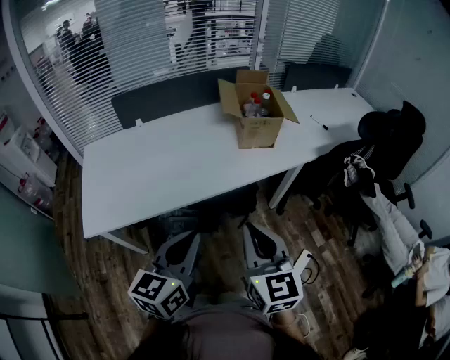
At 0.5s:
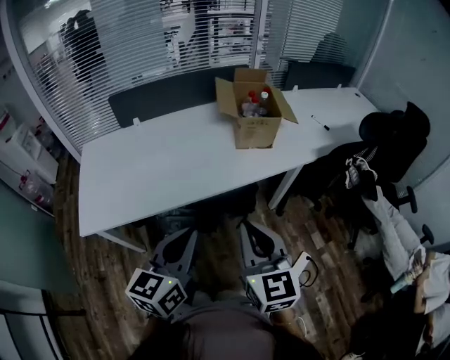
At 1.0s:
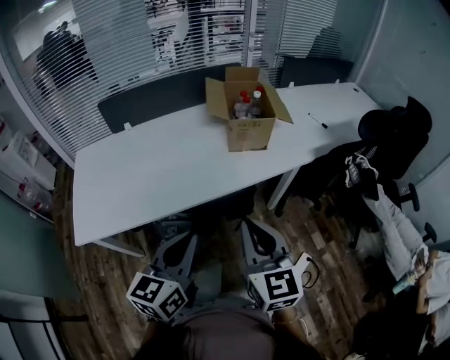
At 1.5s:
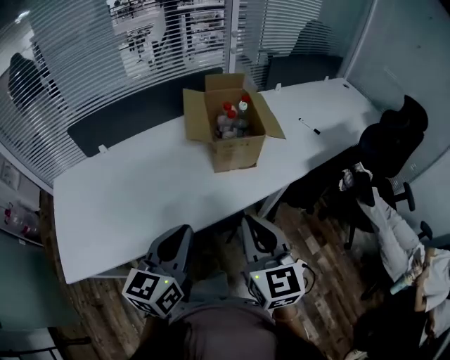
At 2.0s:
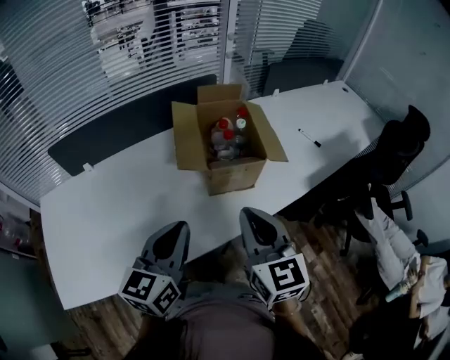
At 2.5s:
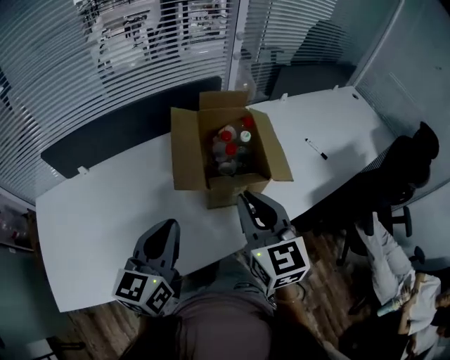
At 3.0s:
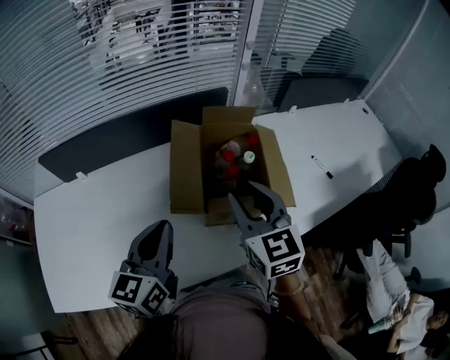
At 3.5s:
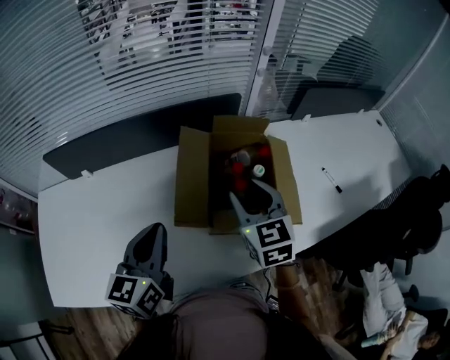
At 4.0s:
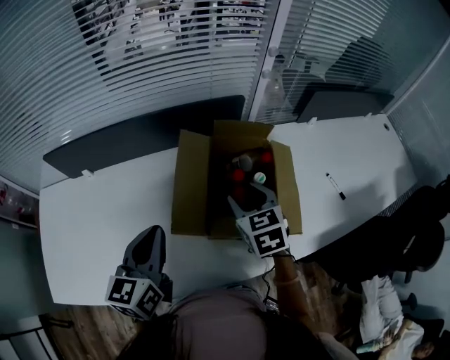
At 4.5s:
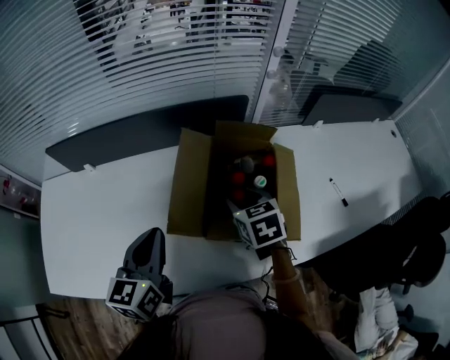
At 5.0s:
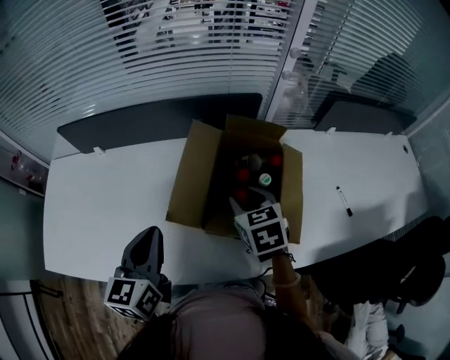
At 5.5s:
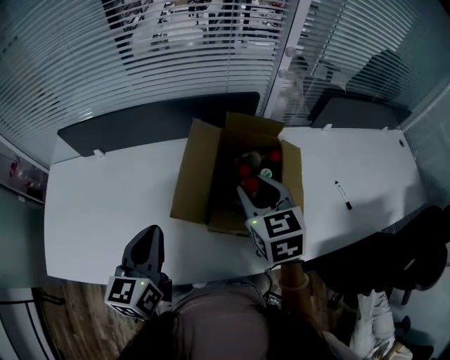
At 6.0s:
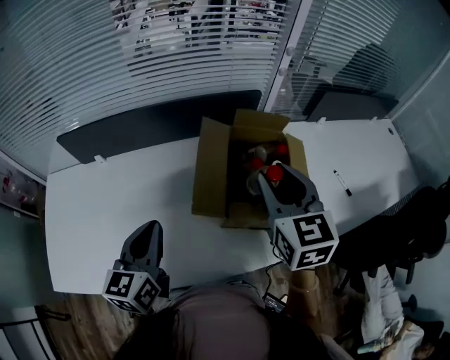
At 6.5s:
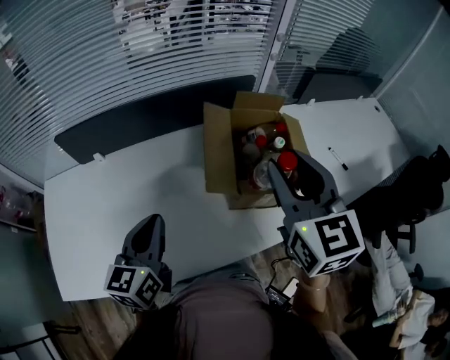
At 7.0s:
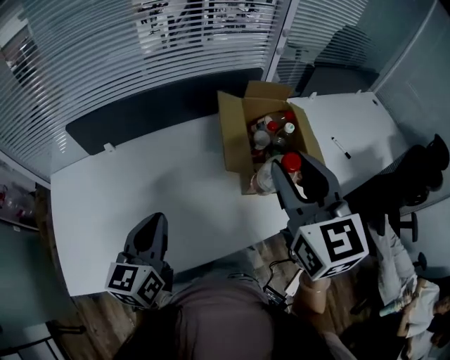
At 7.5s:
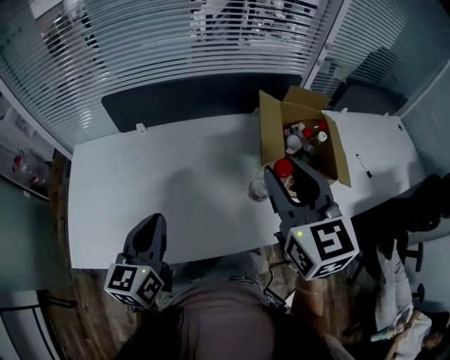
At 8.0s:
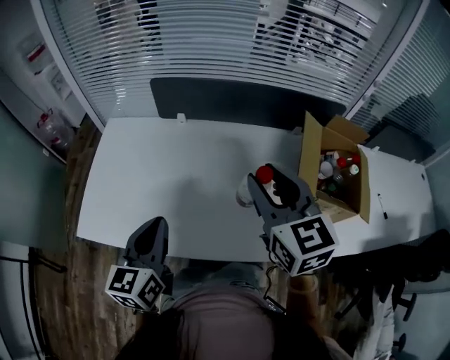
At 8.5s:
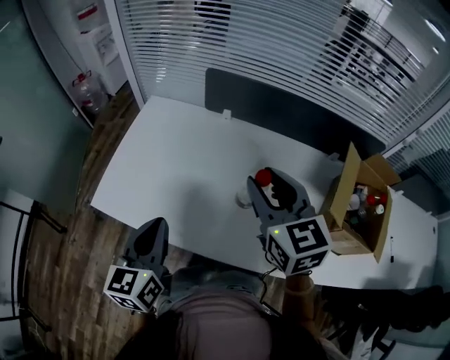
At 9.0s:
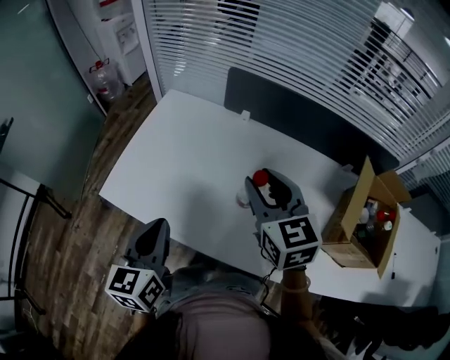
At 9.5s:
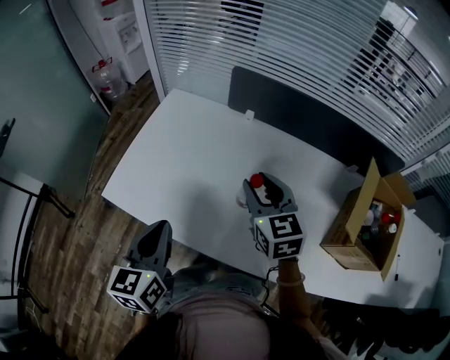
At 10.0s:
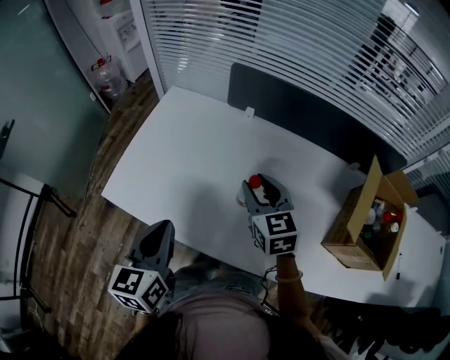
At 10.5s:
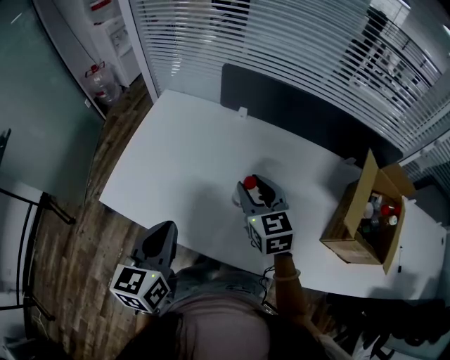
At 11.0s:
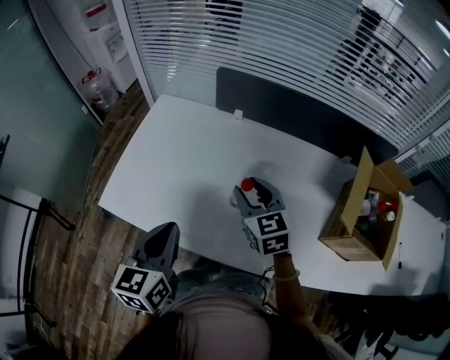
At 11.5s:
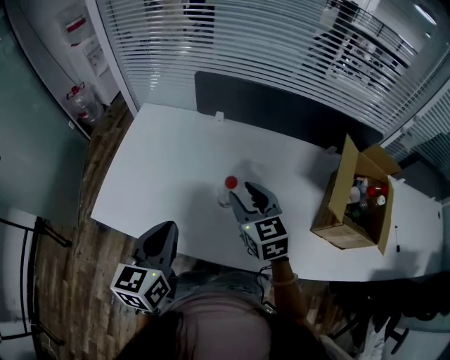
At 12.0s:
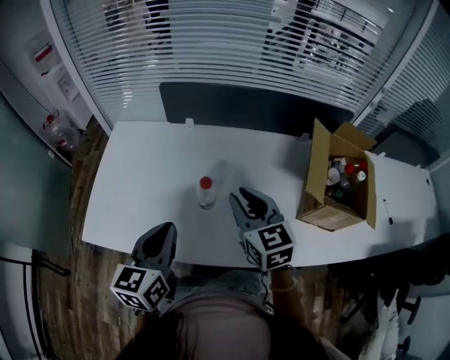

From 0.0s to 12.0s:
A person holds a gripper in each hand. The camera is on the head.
From 0.0s to 2.0s: The grippers both shift forward by approximately 35 cm.
From 2.0s to 4.0s: The left gripper moves forward, roughly 20 cm, and changes its angle by some 20 degrees; the right gripper shifts roughly 30 cm forward, turns by approximately 30 degrees, and opens.
From 4.0s to 6.0s: The right gripper goes about 15 cm upward. Meanwhile the left gripper goes roughly 5 cm to the left.
From 6.0s to 8.0s: The right gripper changes place by some 30 cm, and rotates some 20 degrees. The left gripper changes place by some 30 cm.
From 8.0s to 10.0s: The left gripper is displaced to the left by about 10 cm. The right gripper shifts some 25 cm downward, to the left and forward.
From 10.0s to 12.0s: The right gripper moves to the right and backward, some 10 cm. Meanwhile the left gripper travels to the right by roughly 10 cm, and turns by some 20 degrees.

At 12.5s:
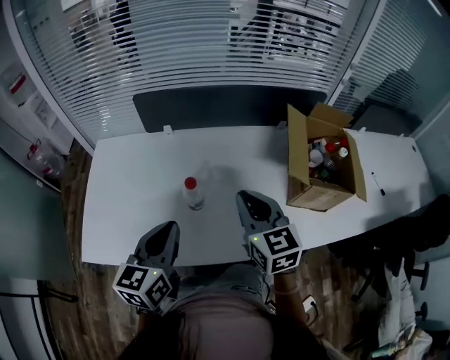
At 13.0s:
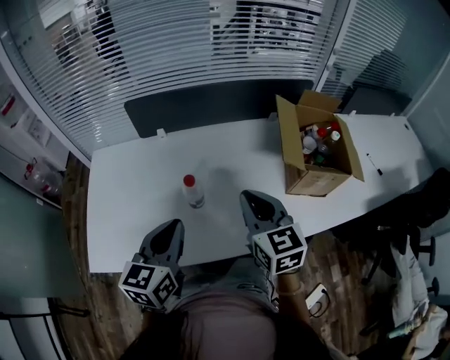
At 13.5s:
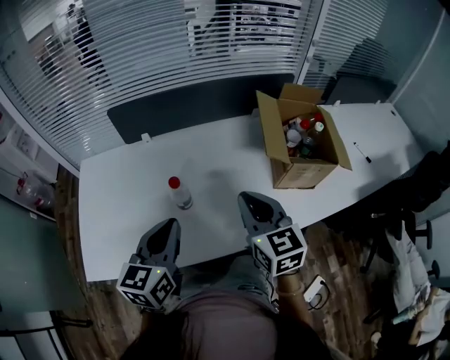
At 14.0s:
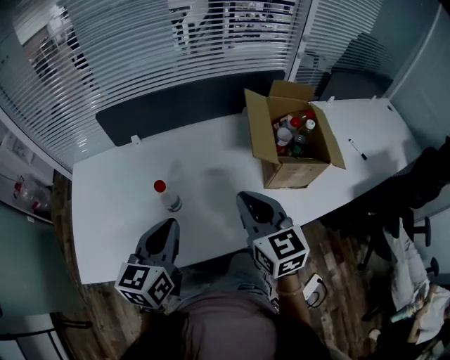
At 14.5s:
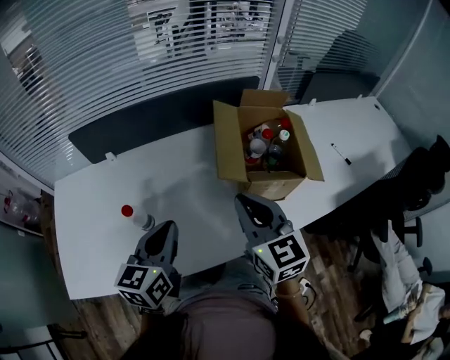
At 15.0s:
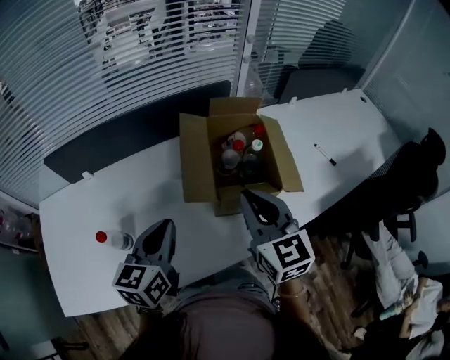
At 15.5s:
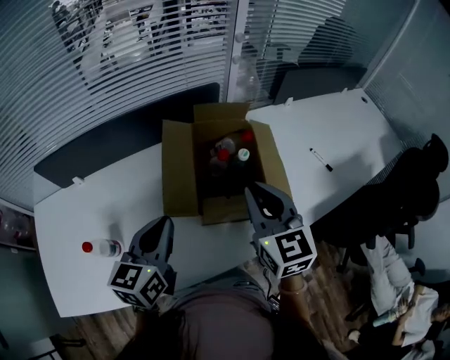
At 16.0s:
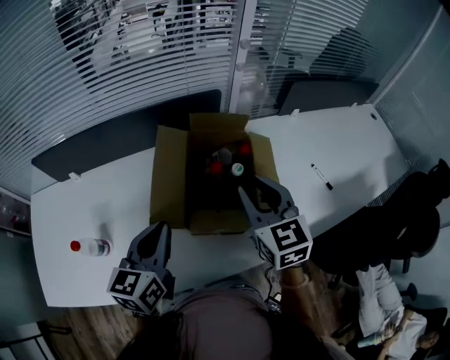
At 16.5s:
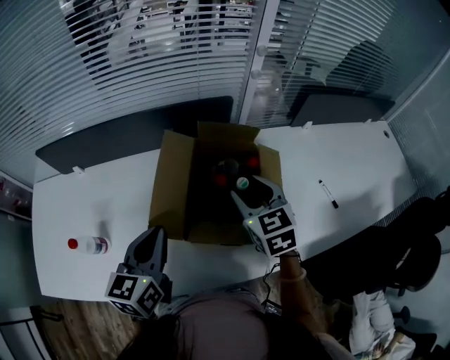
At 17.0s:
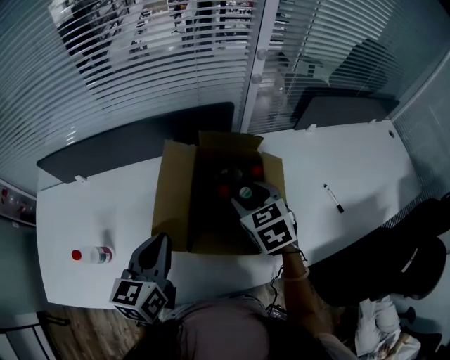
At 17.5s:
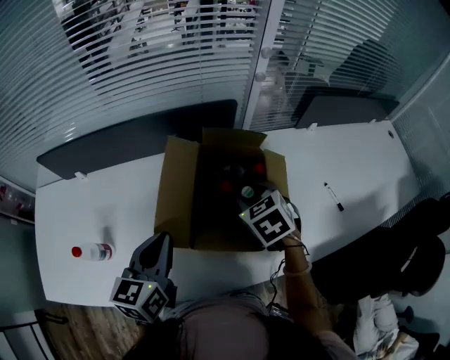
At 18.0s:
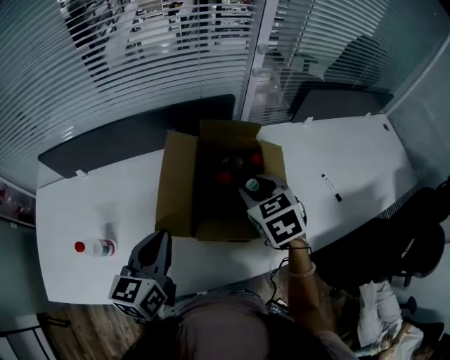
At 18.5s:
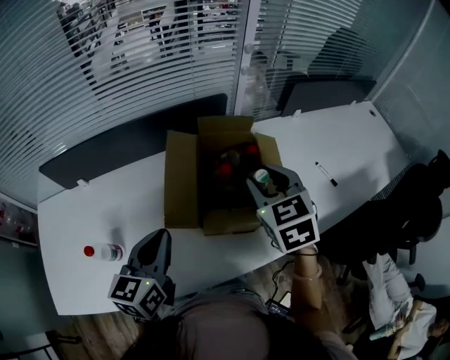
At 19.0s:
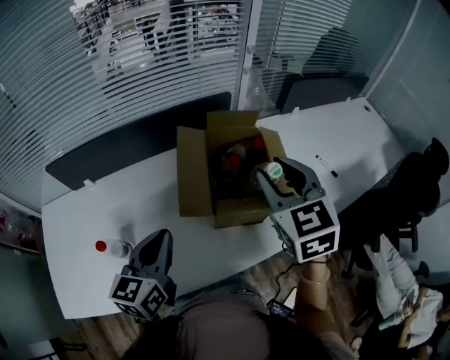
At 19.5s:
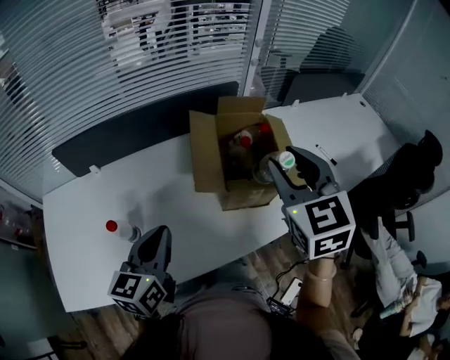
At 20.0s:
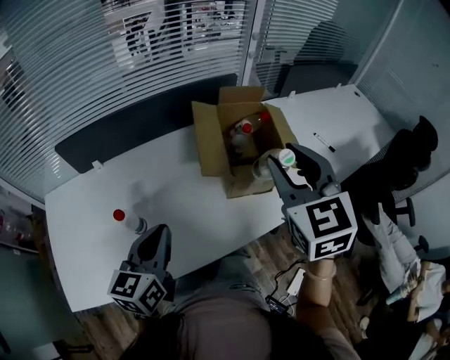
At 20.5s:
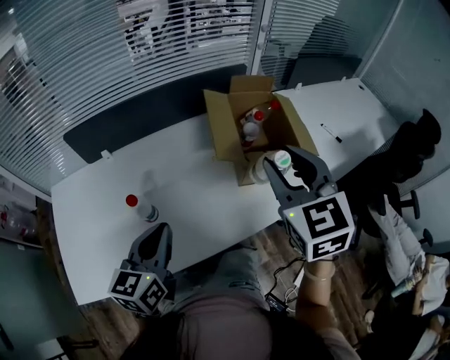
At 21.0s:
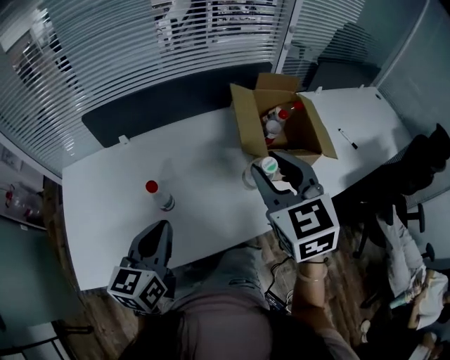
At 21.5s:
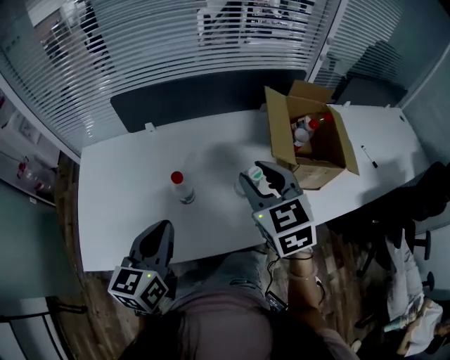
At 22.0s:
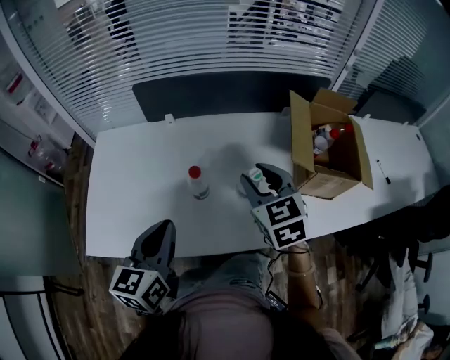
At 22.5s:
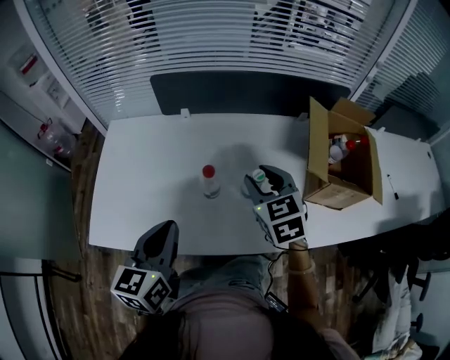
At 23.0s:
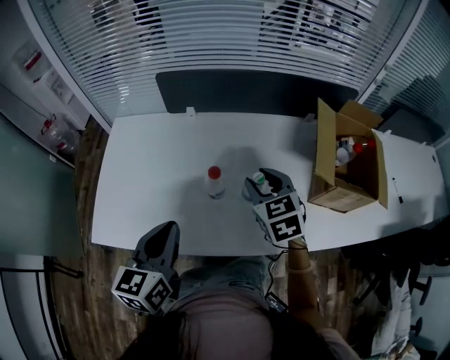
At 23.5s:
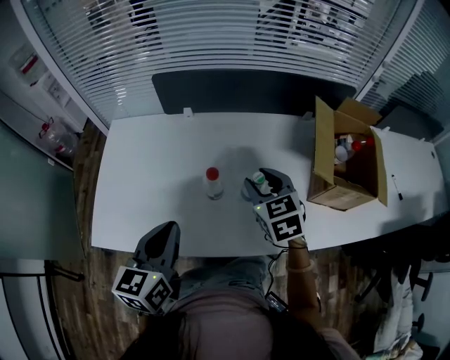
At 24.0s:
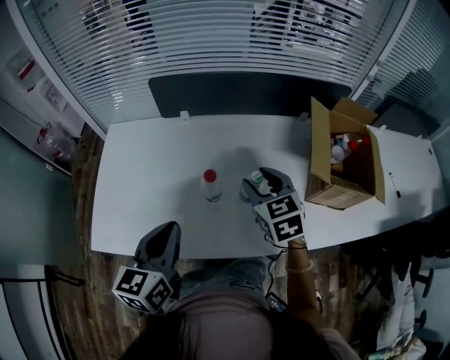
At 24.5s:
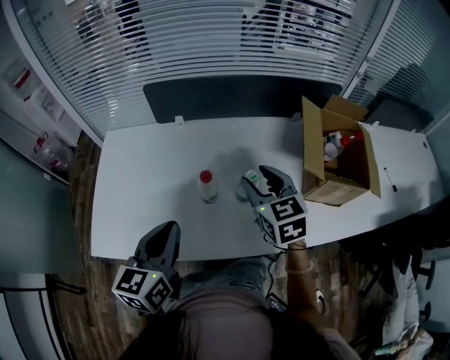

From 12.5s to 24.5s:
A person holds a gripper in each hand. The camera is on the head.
From 12.5s to 14.5s: Both grippers travel together to the right, about 15 cm.
From 14.5s to 16.5s: The right gripper heads forward and to the right, covering about 30 cm, and opens. Meanwhile the left gripper is displaced to the right and forward by some 20 cm.
From 16.5s to 18.5s: The right gripper goes approximately 5 cm upward.
From 18.5s to 20.5s: The two grippers go some 25 cm backward and to the left.
From 20.5s to 22.5s: The right gripper changes place by roughly 30 cm, and changes its angle by roughly 30 degrees. The left gripper changes place by roughly 15 cm, and swivels roughly 20 degrees.
From 22.5s to 24.5s: There are only small adjustments of the grippers.

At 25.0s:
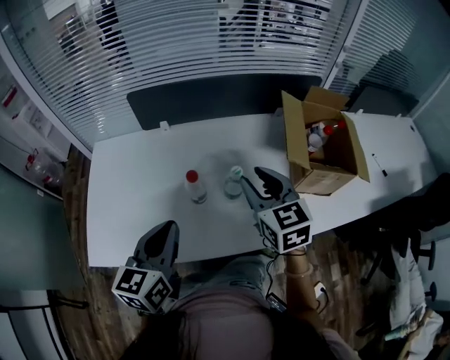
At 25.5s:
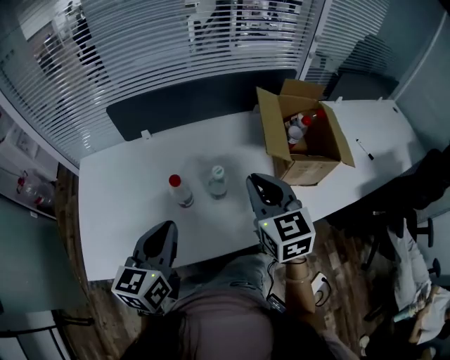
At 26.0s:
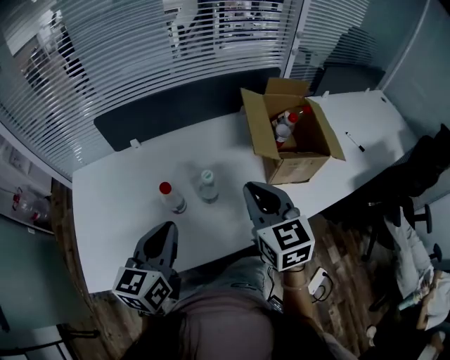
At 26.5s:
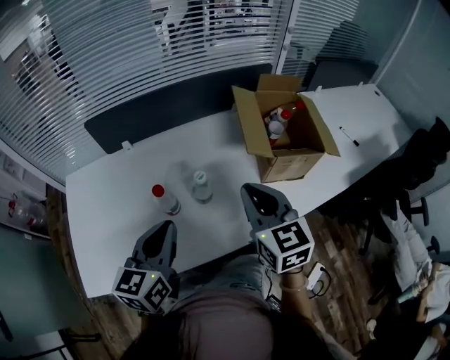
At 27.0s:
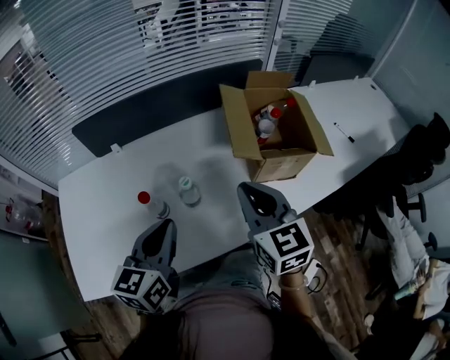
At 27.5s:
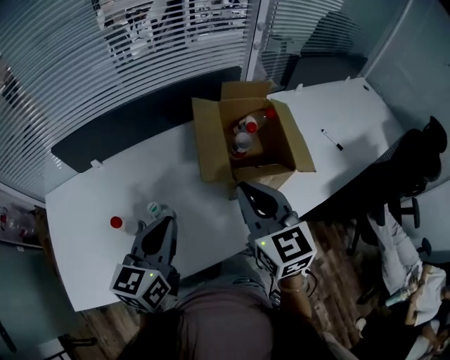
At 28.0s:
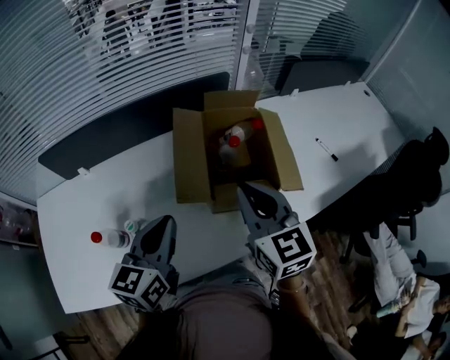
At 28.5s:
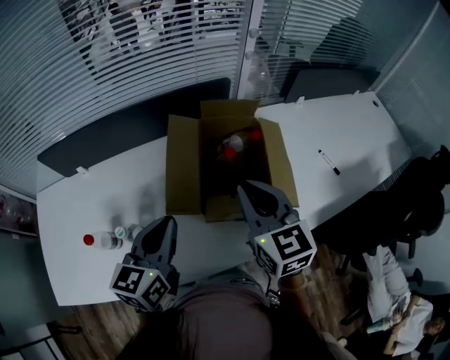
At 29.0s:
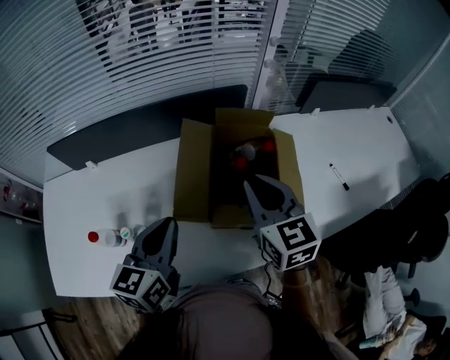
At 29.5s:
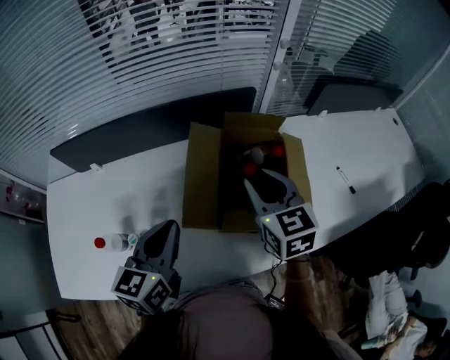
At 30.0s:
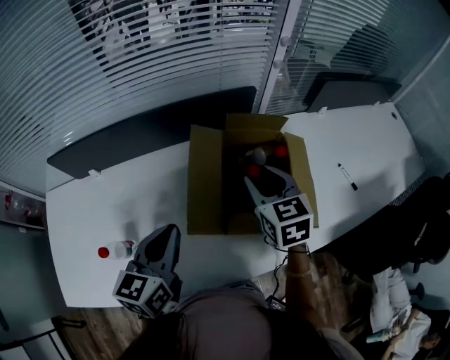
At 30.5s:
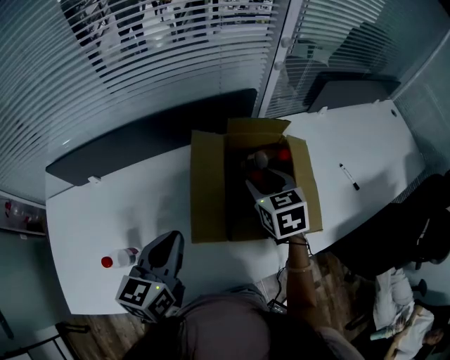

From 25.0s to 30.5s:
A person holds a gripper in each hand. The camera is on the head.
From 25.0s to 27.0s: The right gripper moves to the right, approximately 10 cm, and closes up, while the left gripper goes approximately 10 cm to the right and forward.
From 27.0s to 28.5s: The two grippers go some 25 cm to the right and forward.
From 28.5s to 30.5s: The left gripper shifts by about 5 cm; the right gripper goes approximately 15 cm forward and downward, turns by approximately 20 degrees, and opens.
